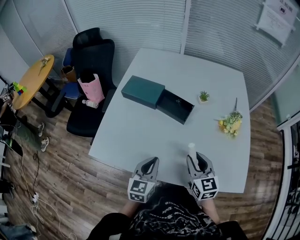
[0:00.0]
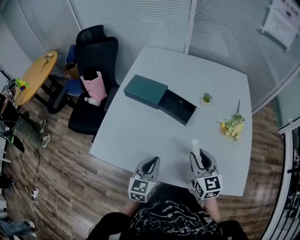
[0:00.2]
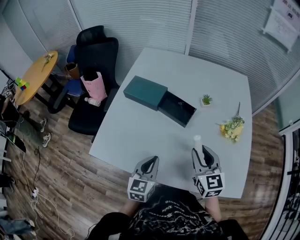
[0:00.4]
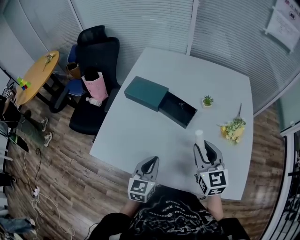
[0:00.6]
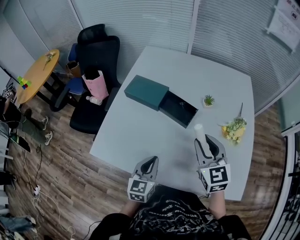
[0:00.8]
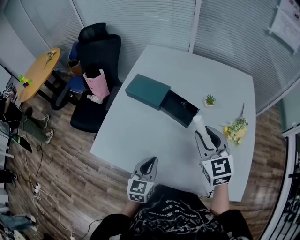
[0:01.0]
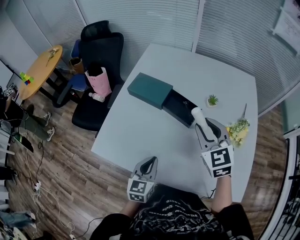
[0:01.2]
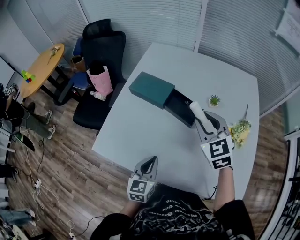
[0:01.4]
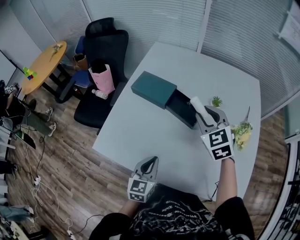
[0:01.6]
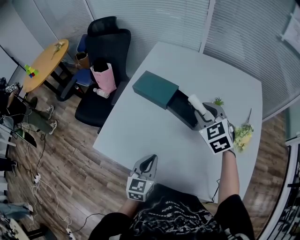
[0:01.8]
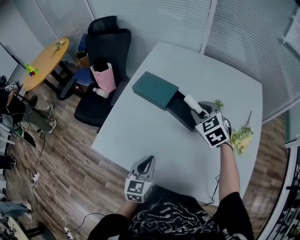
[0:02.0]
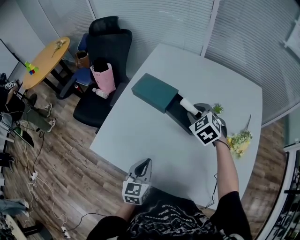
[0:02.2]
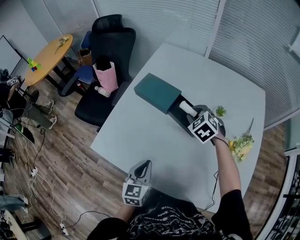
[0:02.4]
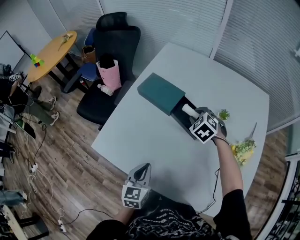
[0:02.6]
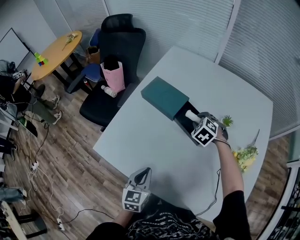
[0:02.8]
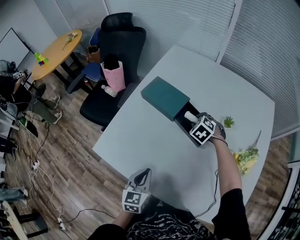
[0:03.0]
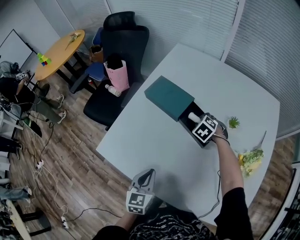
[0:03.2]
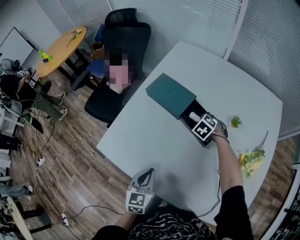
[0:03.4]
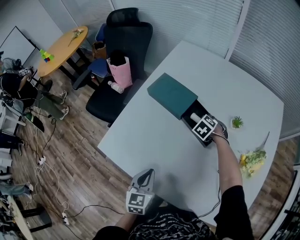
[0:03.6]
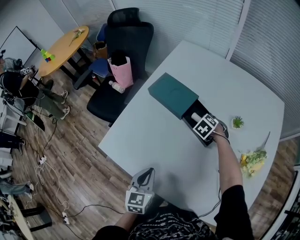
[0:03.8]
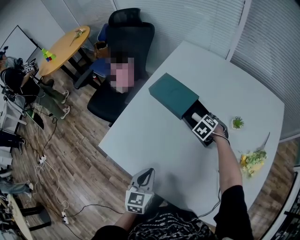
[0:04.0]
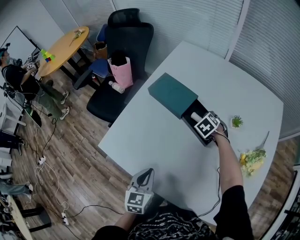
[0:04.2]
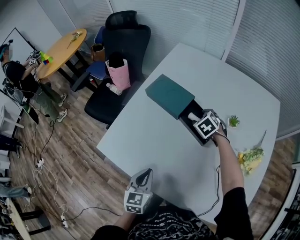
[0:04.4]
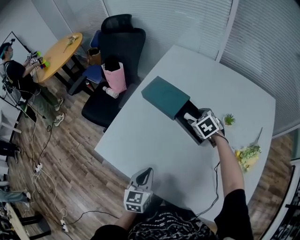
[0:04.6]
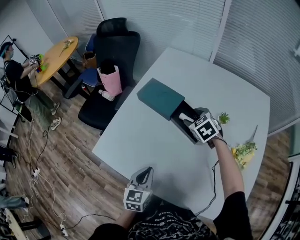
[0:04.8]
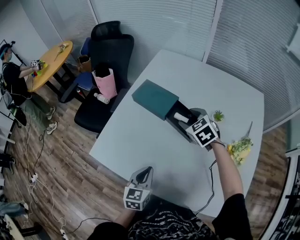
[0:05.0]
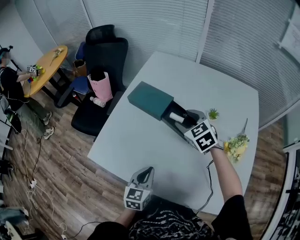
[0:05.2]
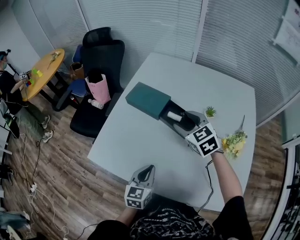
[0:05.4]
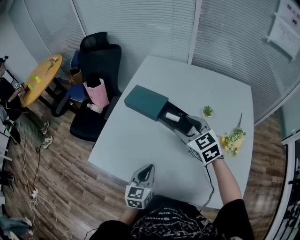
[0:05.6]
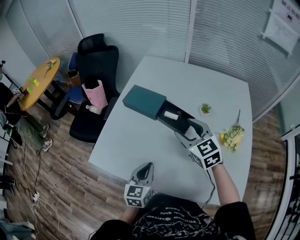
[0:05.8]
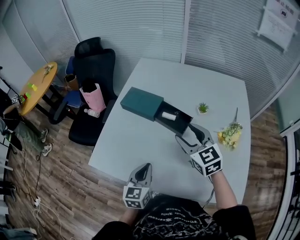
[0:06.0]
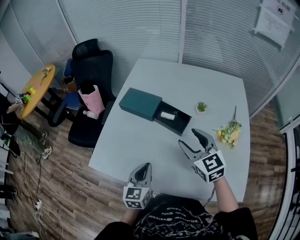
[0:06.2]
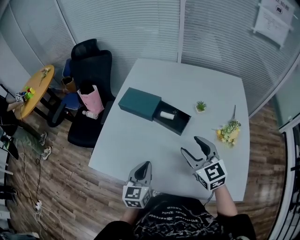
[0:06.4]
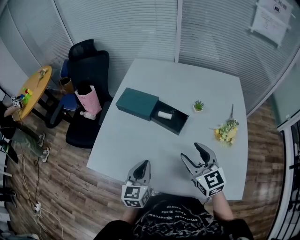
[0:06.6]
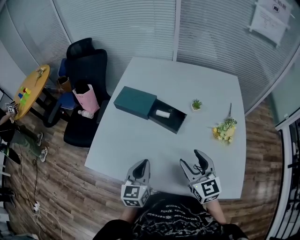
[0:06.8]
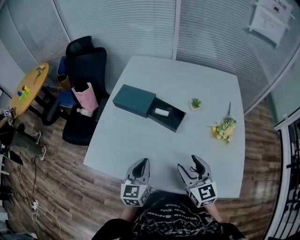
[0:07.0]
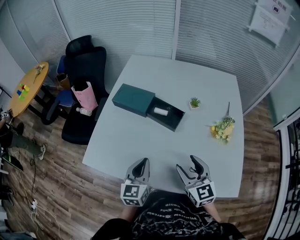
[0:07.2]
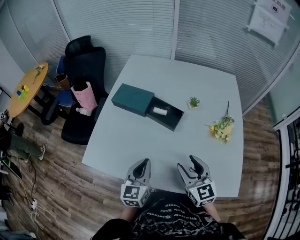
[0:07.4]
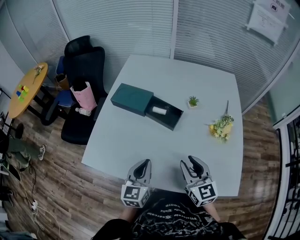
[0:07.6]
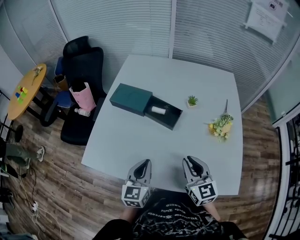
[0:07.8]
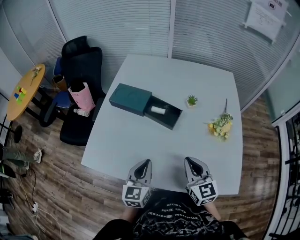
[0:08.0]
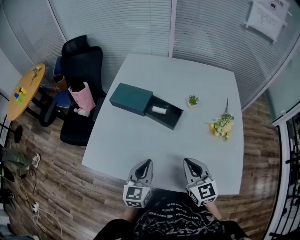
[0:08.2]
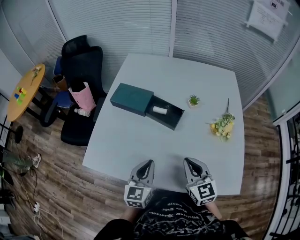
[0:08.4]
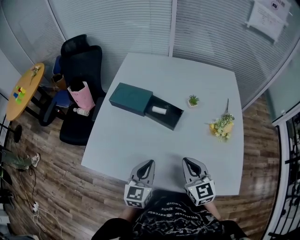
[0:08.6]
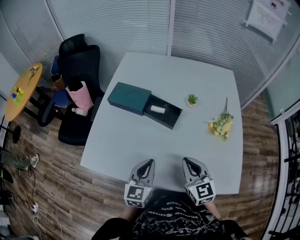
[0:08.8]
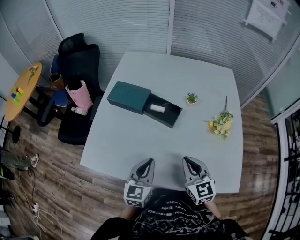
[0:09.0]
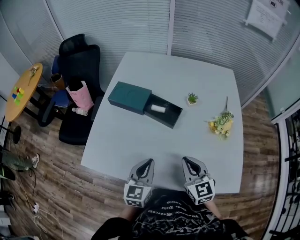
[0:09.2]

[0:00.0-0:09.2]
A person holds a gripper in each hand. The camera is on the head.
0:00.0 to 0:01.6: The right gripper is displaced forward and upward by some 25 cm, and swivels some 30 degrees.
0:01.6 to 0:03.0: The right gripper goes roughly 25 cm downward and forward, and angles its fingers downward, by approximately 30 degrees.
0:03.0 to 0:04.6: The right gripper goes downward and returns, about 5 cm each way, and opens up.
0:04.6 to 0:06.2: The right gripper travels backward and upward by approximately 30 cm, and tips its fingers upward by approximately 40 degrees. The left gripper moves upward, about 5 cm.
0:06.2 to 0:07.6: The right gripper is displaced backward and downward by about 15 cm, and closes.
0:07.6 to 0:09.2: The right gripper closes.

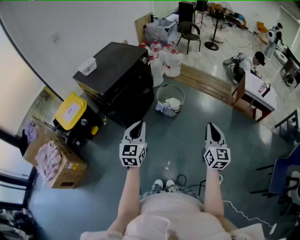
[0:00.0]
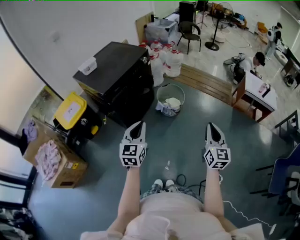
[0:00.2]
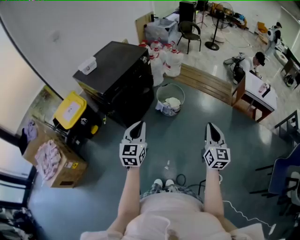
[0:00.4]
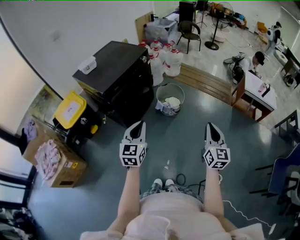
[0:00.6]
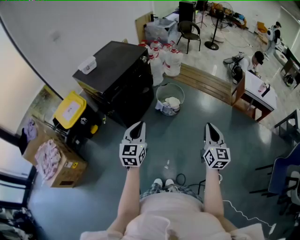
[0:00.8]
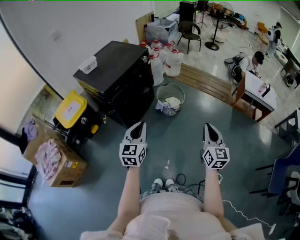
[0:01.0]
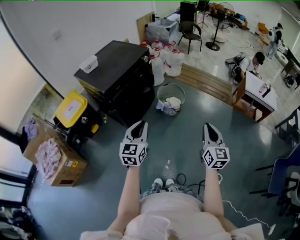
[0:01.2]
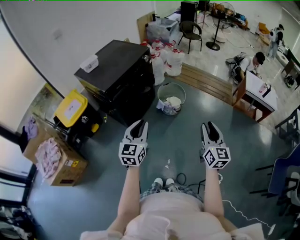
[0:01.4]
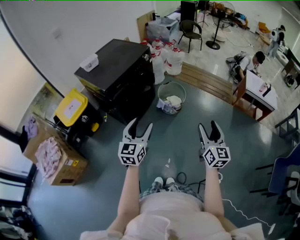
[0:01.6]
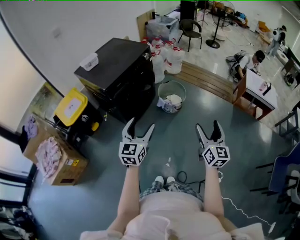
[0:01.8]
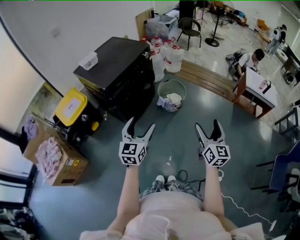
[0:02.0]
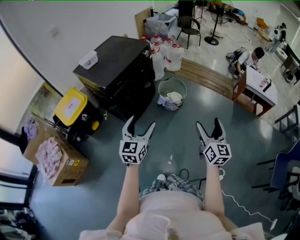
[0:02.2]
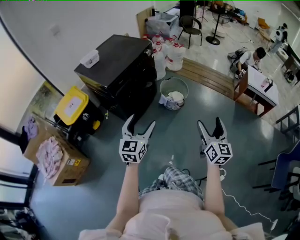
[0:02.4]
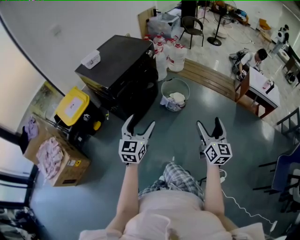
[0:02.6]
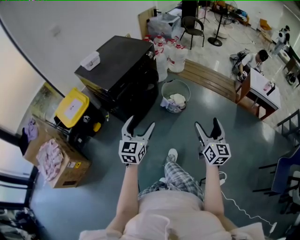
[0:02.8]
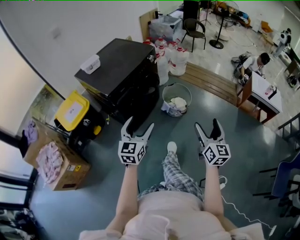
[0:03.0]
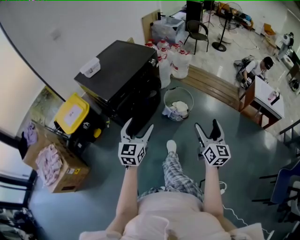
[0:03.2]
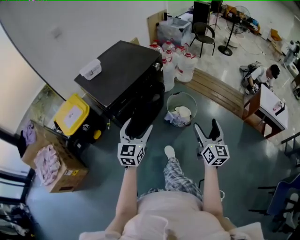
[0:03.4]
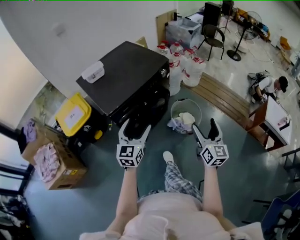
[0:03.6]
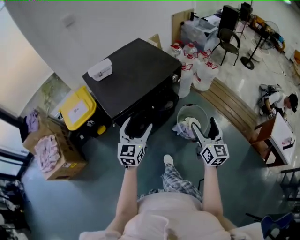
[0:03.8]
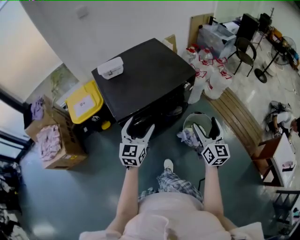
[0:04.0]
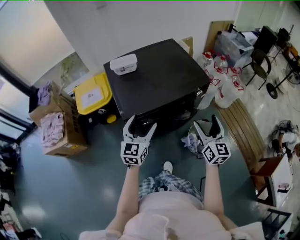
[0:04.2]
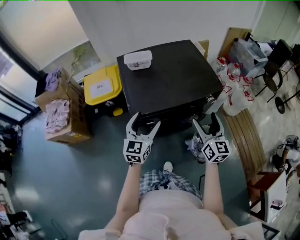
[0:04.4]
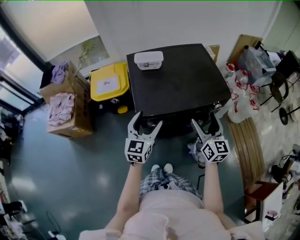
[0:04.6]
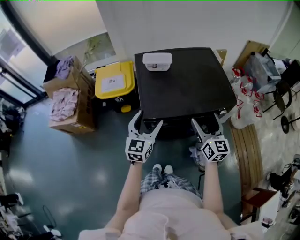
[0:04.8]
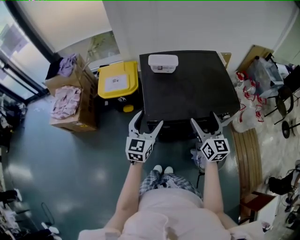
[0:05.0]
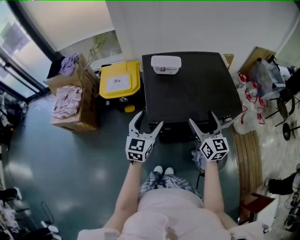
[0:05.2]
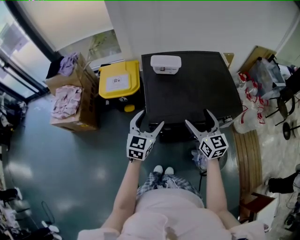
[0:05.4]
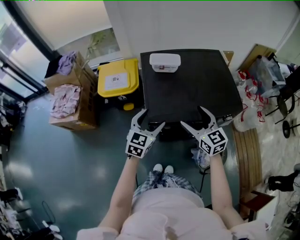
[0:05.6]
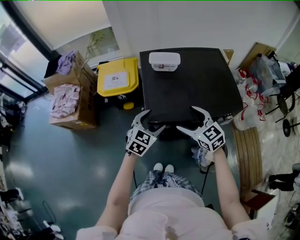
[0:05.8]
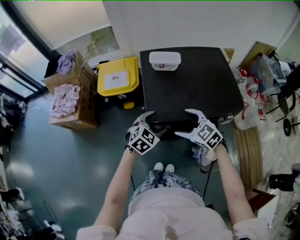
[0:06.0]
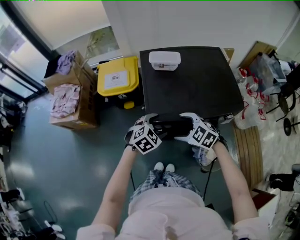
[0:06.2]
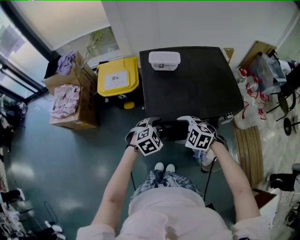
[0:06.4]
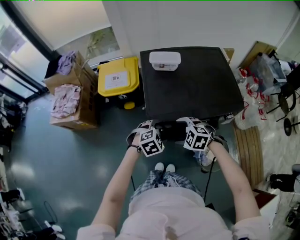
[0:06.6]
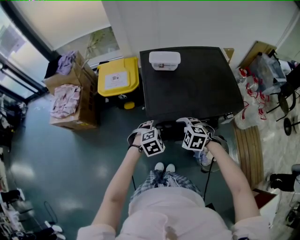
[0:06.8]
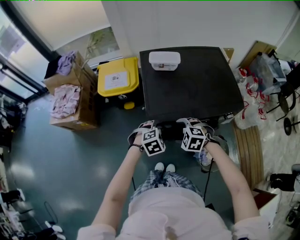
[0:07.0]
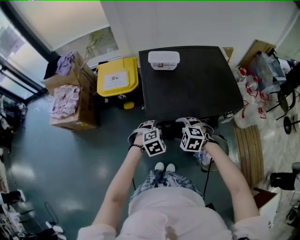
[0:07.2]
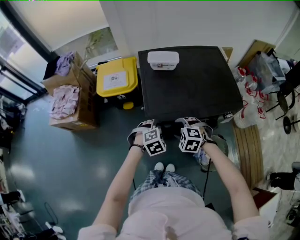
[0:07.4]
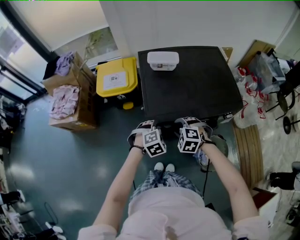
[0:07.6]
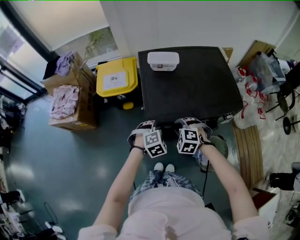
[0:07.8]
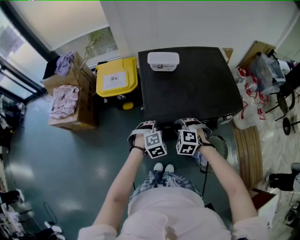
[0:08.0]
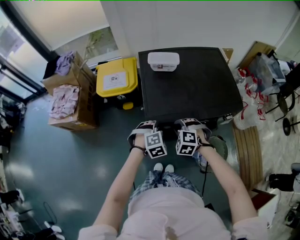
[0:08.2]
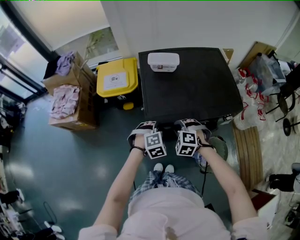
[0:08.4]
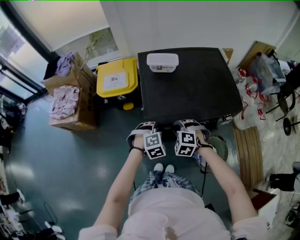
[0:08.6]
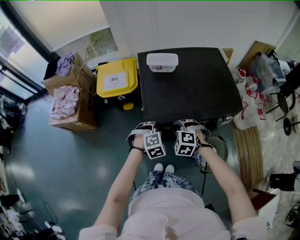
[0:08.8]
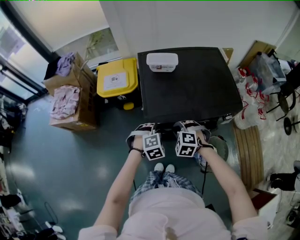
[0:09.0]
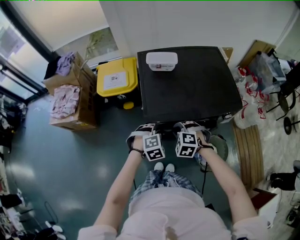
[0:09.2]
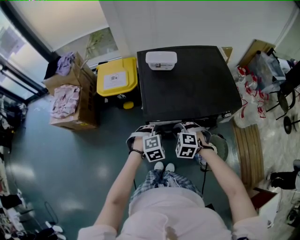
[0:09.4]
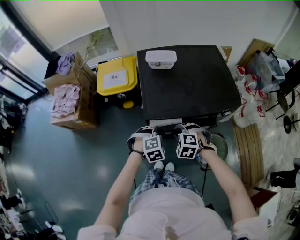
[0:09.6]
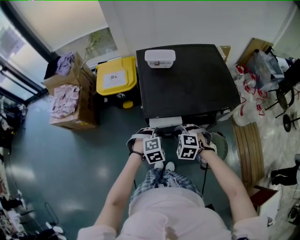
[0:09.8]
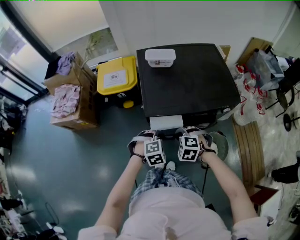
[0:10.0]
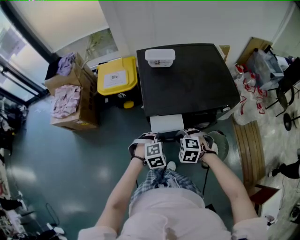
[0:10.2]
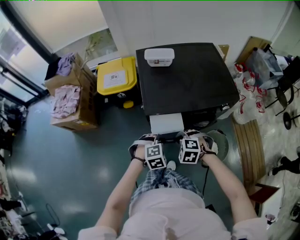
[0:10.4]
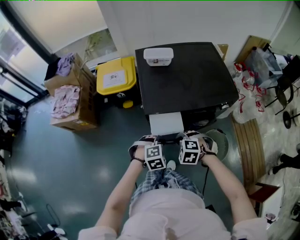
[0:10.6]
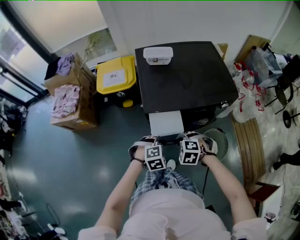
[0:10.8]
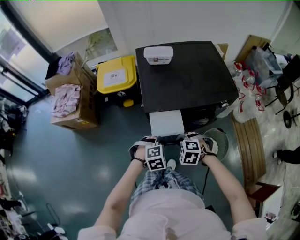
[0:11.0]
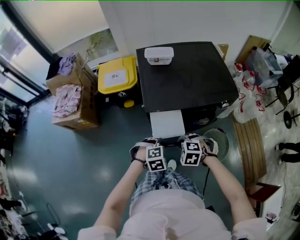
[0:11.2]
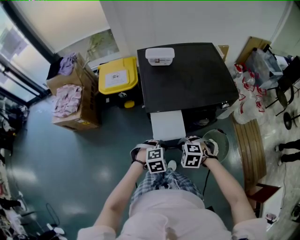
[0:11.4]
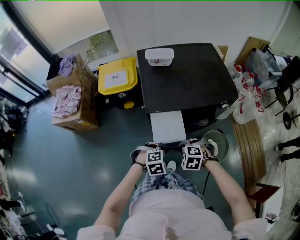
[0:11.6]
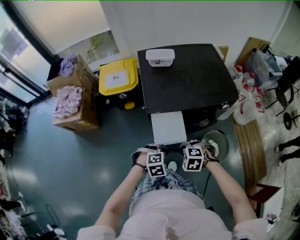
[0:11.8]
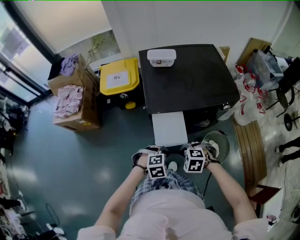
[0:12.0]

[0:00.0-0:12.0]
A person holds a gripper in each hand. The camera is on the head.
0:00.0 to 0:01.6: The right gripper opens up; the left gripper opens its fingers.
0:01.6 to 0:03.0: Both grippers travel together forward and to the left, roughly 10 cm. The right gripper opens up.
0:03.0 to 0:04.4: The right gripper moves about 50 cm, and changes its angle by about 40 degrees. The left gripper changes place by about 35 cm, and swivels approximately 40 degrees.
0:04.4 to 0:06.0: The left gripper moves downward and forward, about 10 cm, and tips its fingers downward by some 30 degrees, while the right gripper moves to the left and forward, about 20 cm, and angles its fingers downward, by some 30 degrees.
0:06.0 to 0:07.6: The left gripper shifts some 5 cm downward, turns by approximately 30 degrees, and closes. The right gripper shifts approximately 10 cm downward, changes its angle by approximately 40 degrees, and closes.
0:07.6 to 0:09.0: The grippers make only small movements.
0:09.0 to 0:10.4: Both grippers travel together backward, approximately 10 cm.
0:10.4 to 0:12.0: The left gripper ends up approximately 10 cm from where it was. The right gripper shifts by roughly 10 cm.

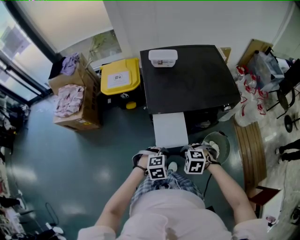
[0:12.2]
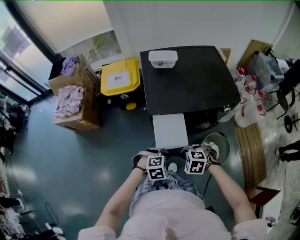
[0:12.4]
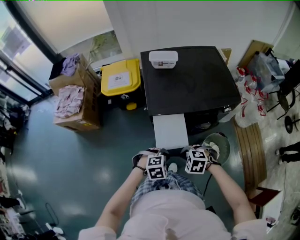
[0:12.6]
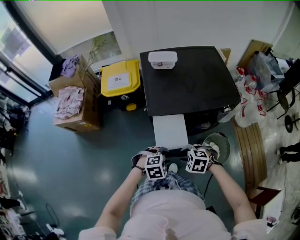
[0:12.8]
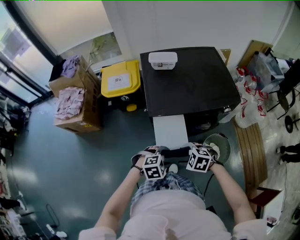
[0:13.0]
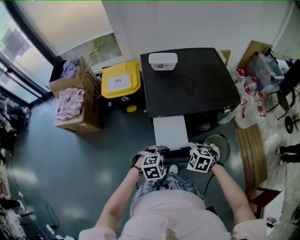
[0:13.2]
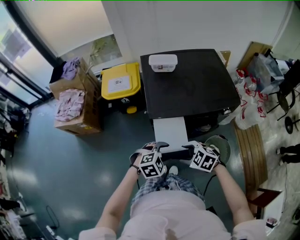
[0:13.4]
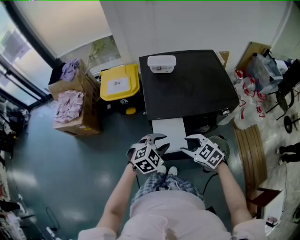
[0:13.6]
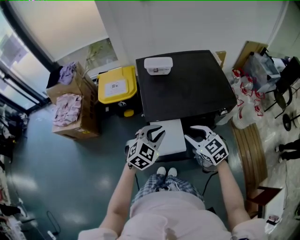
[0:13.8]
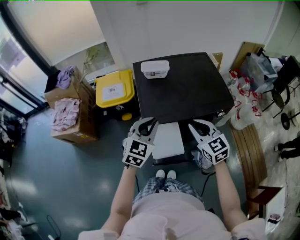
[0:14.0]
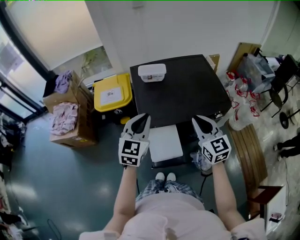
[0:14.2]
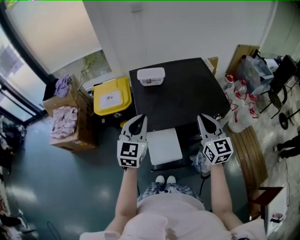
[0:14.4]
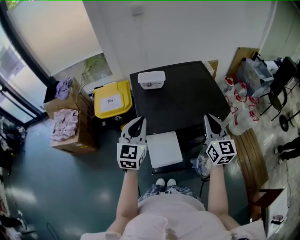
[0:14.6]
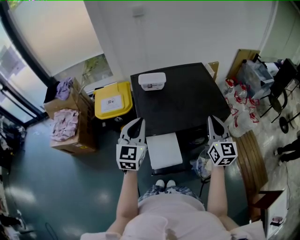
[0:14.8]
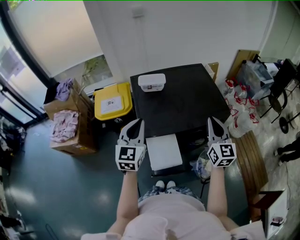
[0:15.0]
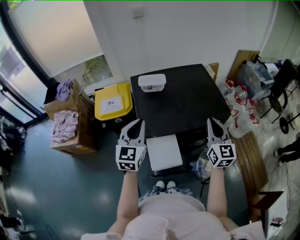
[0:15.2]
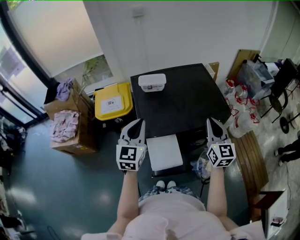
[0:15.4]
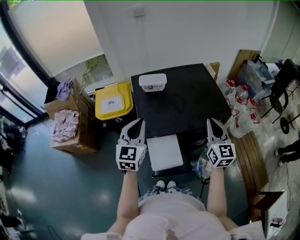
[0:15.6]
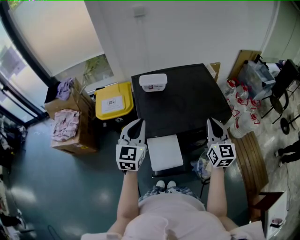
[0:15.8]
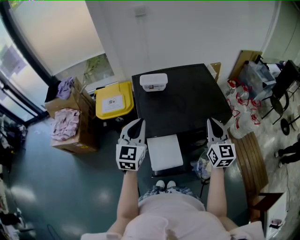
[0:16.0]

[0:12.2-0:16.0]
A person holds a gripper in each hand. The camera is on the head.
0:12.2 to 0:13.4: The right gripper moves approximately 5 cm, rotates roughly 20 degrees, and opens. The left gripper moves upward, about 5 cm, and opens.
0:13.4 to 0:14.8: The right gripper moves approximately 30 cm, angles its fingers upward, by approximately 50 degrees, and closes. The left gripper heads upward, covering approximately 20 cm, points its fingers approximately 50 degrees further upward, and closes its fingers.
0:14.8 to 0:16.0: There are only small adjustments of the grippers.
